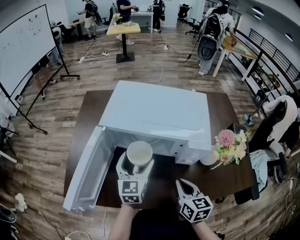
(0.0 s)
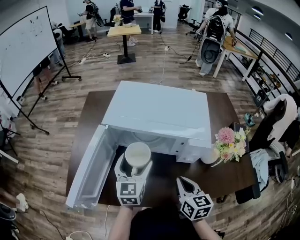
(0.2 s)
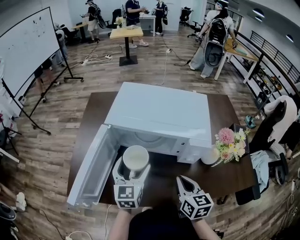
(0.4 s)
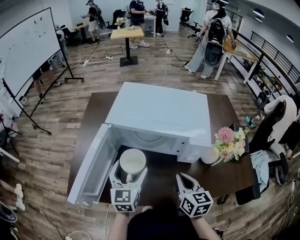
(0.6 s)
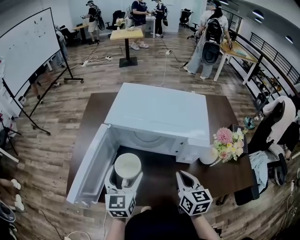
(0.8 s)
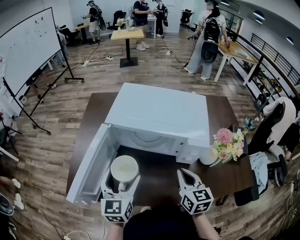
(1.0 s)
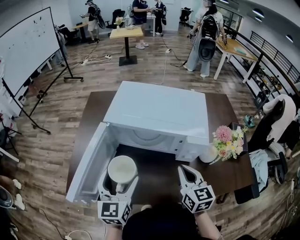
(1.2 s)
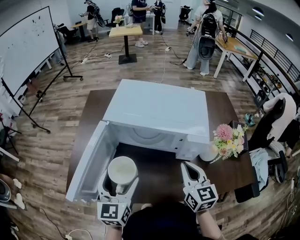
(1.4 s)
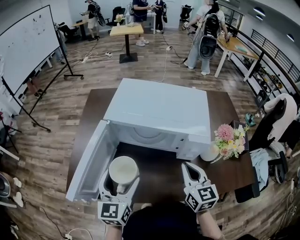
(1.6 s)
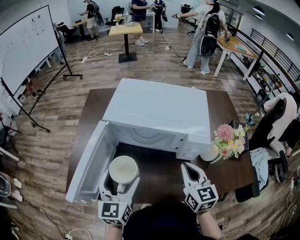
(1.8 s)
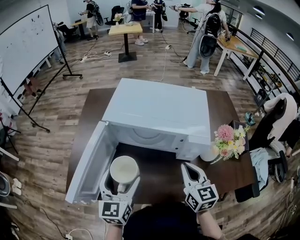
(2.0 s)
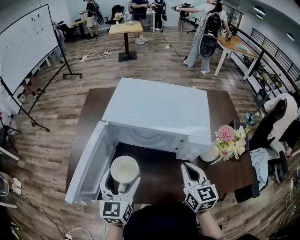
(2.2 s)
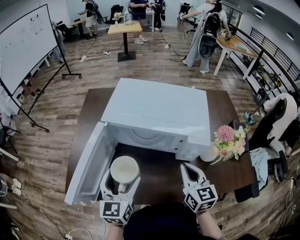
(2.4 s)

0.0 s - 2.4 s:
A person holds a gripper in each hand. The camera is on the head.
0.0 s - 1.2 s: The right gripper is displaced upward by about 5 cm; the left gripper heads backward, to the left and upward, covering roughly 15 cm.
1.2 s - 2.4 s: The grippers make only small movements.

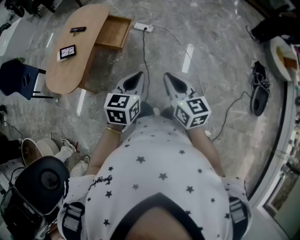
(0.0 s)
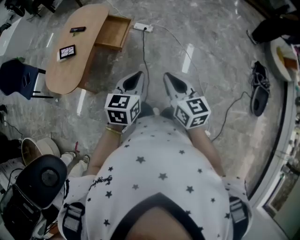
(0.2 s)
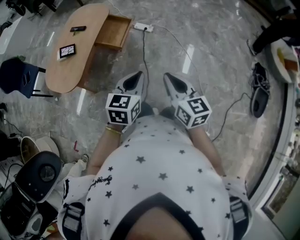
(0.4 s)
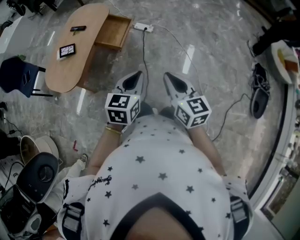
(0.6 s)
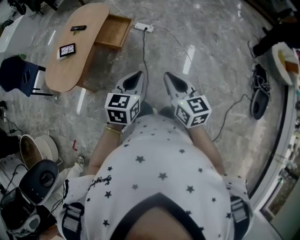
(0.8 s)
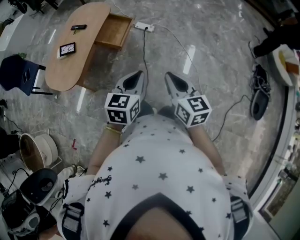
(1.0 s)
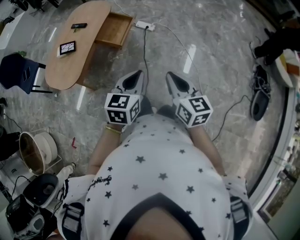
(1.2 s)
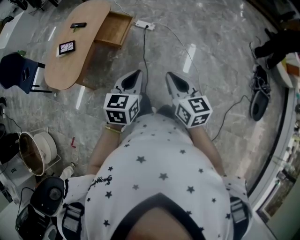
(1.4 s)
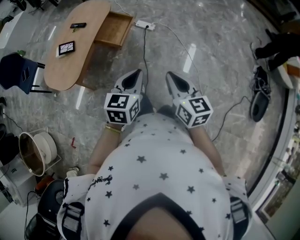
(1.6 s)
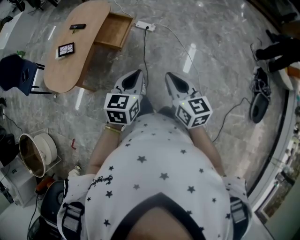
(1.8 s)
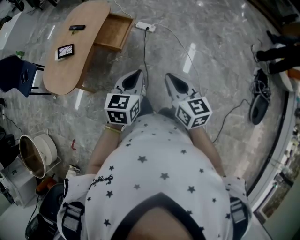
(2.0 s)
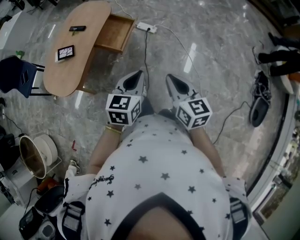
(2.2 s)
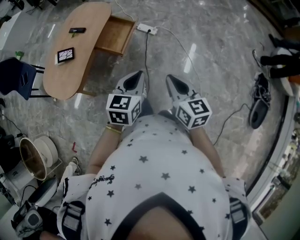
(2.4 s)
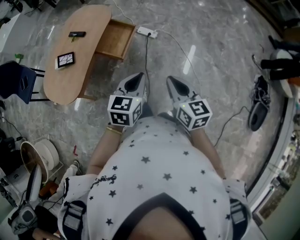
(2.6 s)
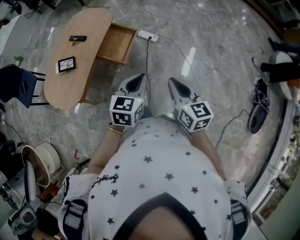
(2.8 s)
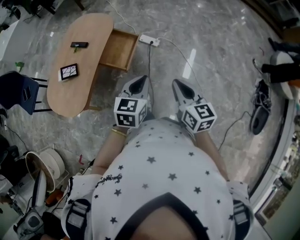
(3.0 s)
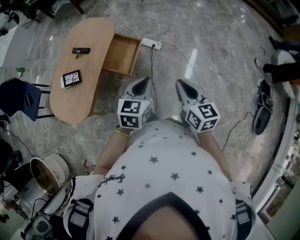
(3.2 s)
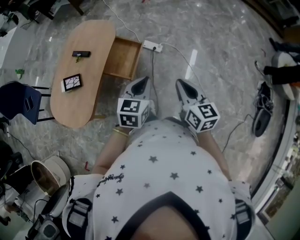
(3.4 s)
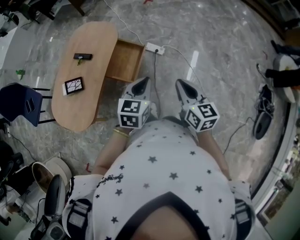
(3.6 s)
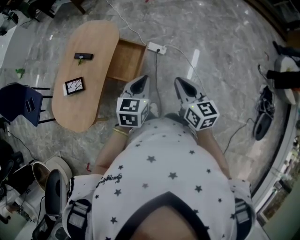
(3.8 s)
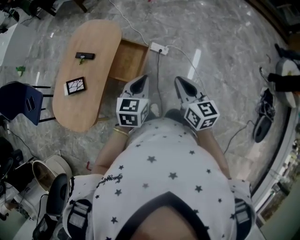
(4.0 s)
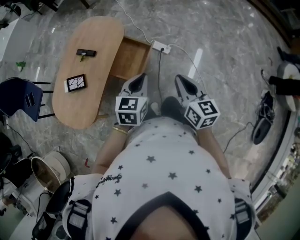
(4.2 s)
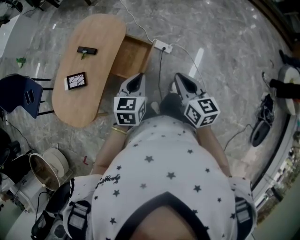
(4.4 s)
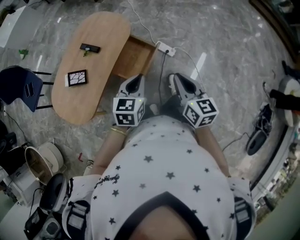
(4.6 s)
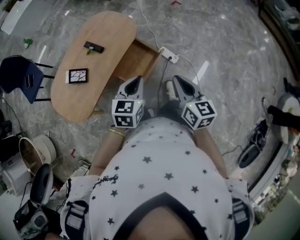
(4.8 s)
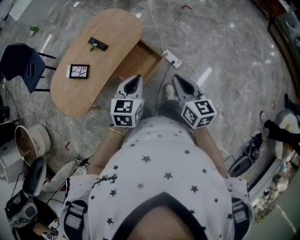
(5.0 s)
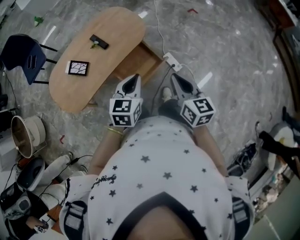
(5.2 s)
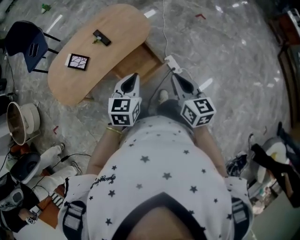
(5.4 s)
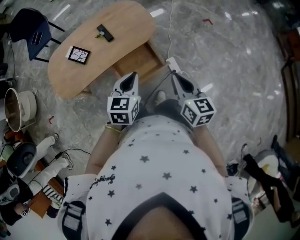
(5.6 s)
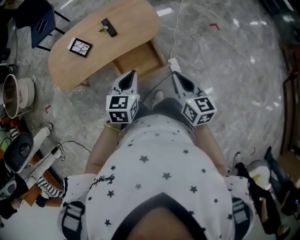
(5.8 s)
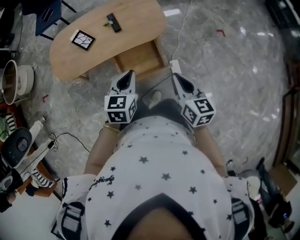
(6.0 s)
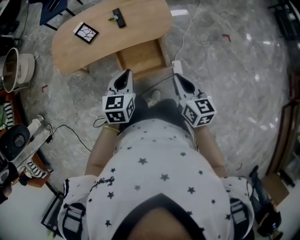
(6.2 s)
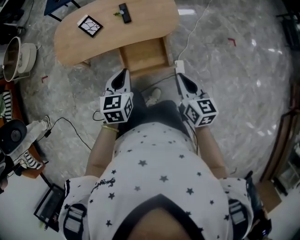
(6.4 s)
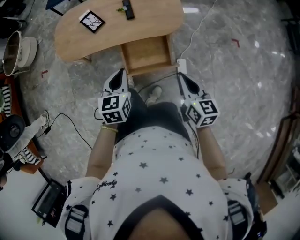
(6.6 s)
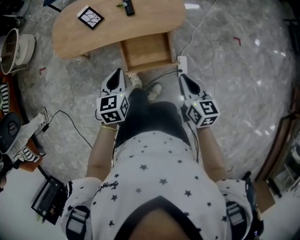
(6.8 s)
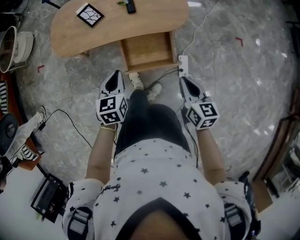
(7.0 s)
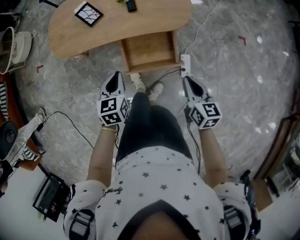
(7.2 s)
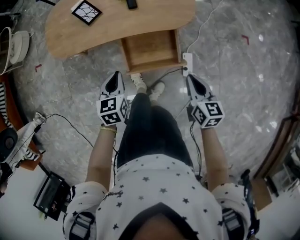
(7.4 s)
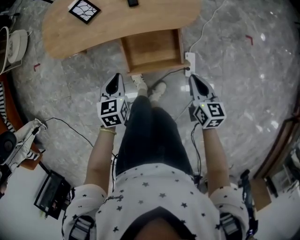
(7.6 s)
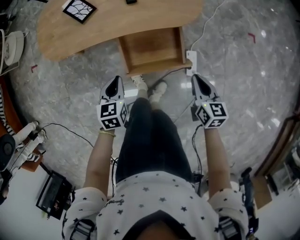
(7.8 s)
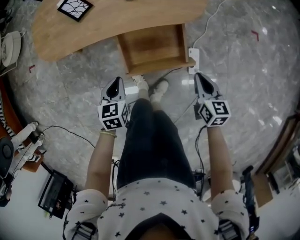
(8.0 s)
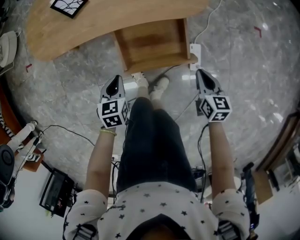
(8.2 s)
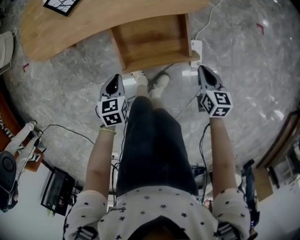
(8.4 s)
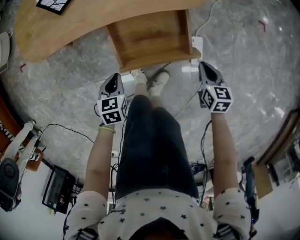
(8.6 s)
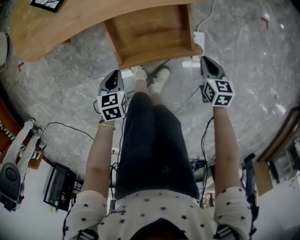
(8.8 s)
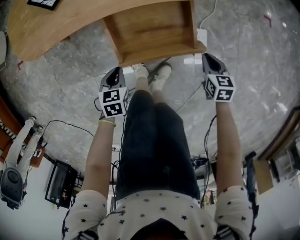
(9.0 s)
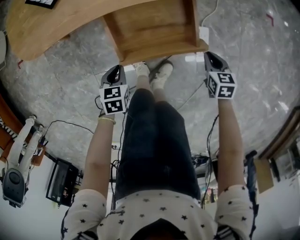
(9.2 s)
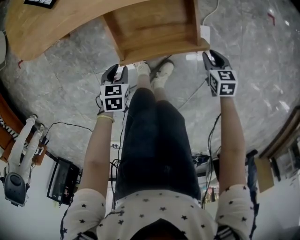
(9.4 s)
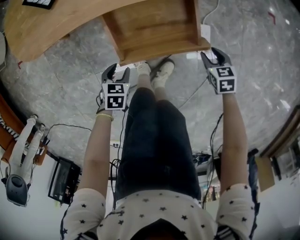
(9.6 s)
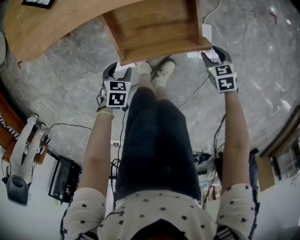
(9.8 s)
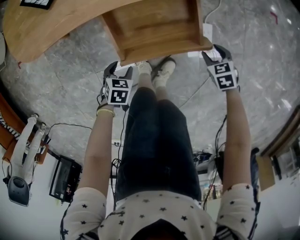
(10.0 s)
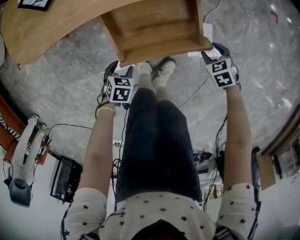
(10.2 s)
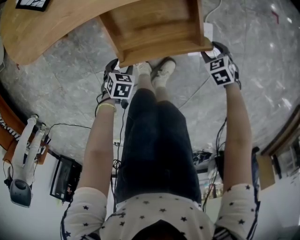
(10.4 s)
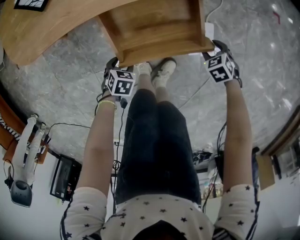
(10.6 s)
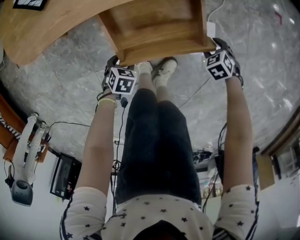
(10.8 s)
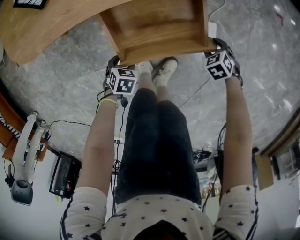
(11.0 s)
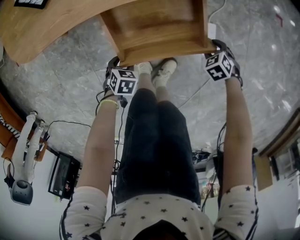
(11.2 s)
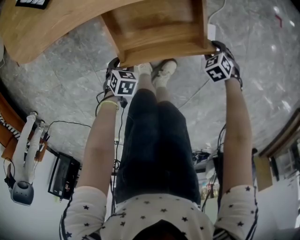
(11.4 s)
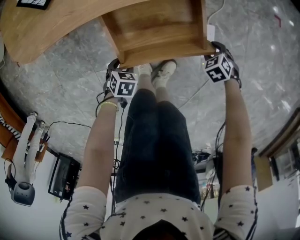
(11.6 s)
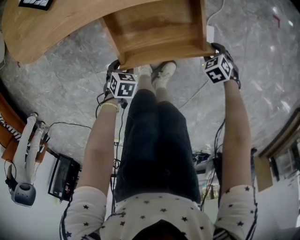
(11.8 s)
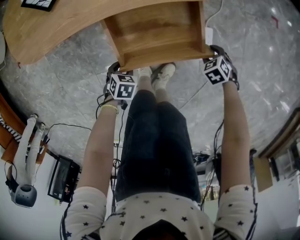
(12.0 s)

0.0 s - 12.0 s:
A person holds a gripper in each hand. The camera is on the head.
0.0 s - 1.6 s: The grippers move only a little.
1.6 s - 3.0 s: The grippers both shift forward by about 20 cm.
3.0 s - 4.4 s: The left gripper moves forward and to the left, about 20 cm. Meanwhile the right gripper heads forward, covering some 20 cm.
4.4 s - 6.0 s: The right gripper changes place by approximately 25 cm, and swivels about 50 degrees. The left gripper changes place by roughly 15 cm, and turns by some 50 degrees.
6.0 s - 7.6 s: The right gripper heads downward, covering about 20 cm, while the left gripper travels downward and to the left by approximately 25 cm, and swivels approximately 20 degrees.
7.6 s - 9.0 s: Both grippers travel together downward, some 25 cm. The right gripper turns by roughly 20 degrees.
9.0 s - 10.4 s: Both grippers travel together downward, about 10 cm. The left gripper rotates about 30 degrees, and opens. The right gripper changes its angle by about 40 degrees, and opens up.
10.4 s - 12.0 s: The grippers make only small movements.

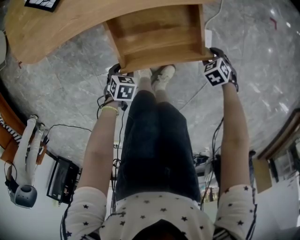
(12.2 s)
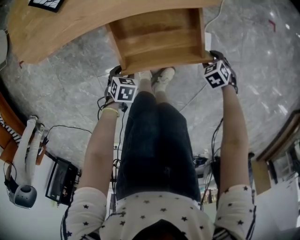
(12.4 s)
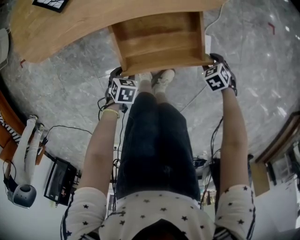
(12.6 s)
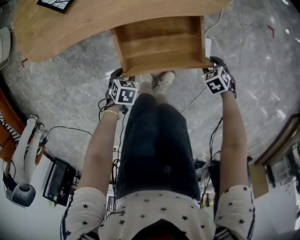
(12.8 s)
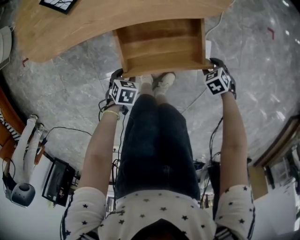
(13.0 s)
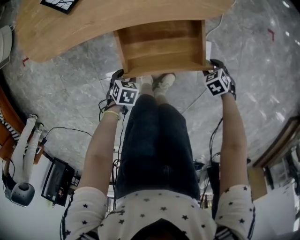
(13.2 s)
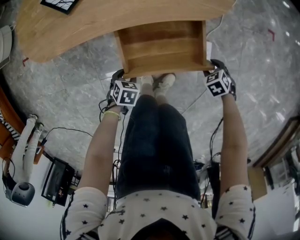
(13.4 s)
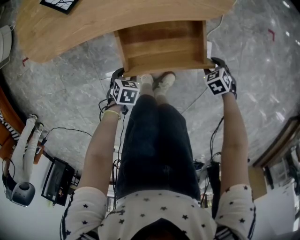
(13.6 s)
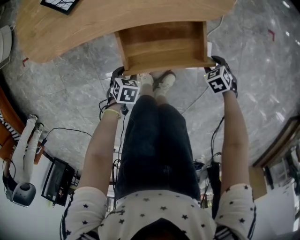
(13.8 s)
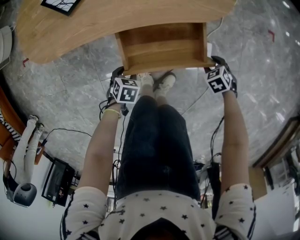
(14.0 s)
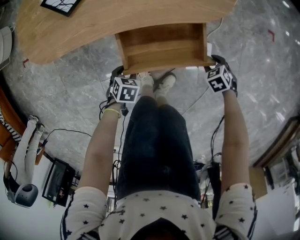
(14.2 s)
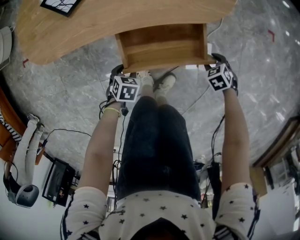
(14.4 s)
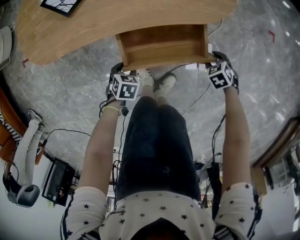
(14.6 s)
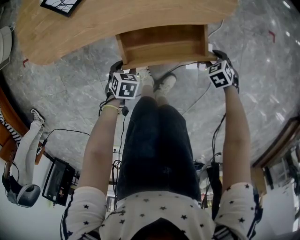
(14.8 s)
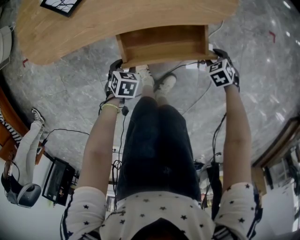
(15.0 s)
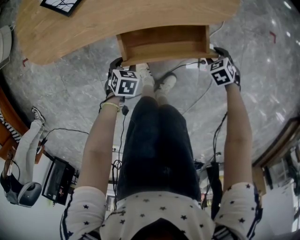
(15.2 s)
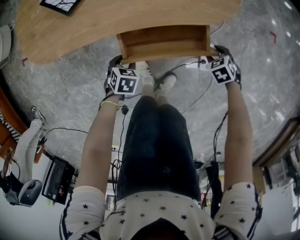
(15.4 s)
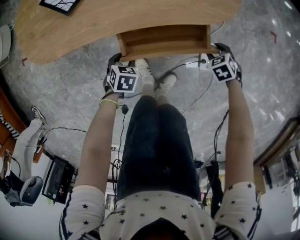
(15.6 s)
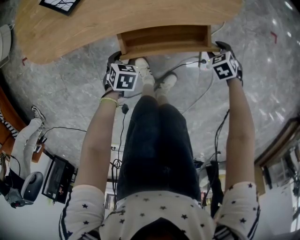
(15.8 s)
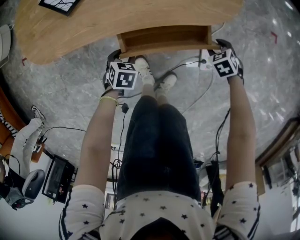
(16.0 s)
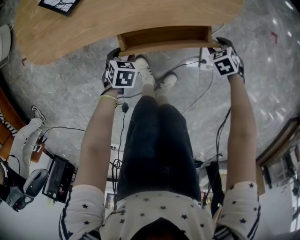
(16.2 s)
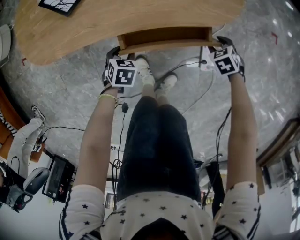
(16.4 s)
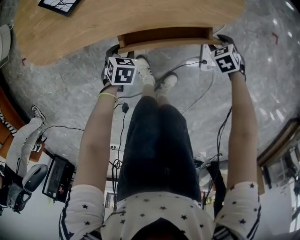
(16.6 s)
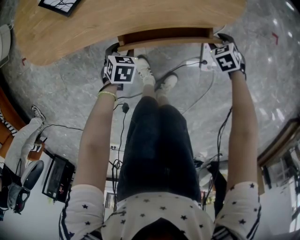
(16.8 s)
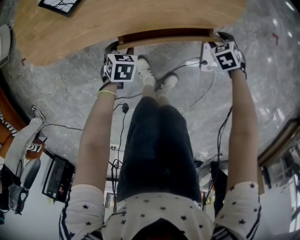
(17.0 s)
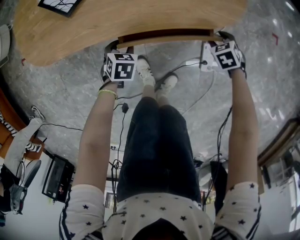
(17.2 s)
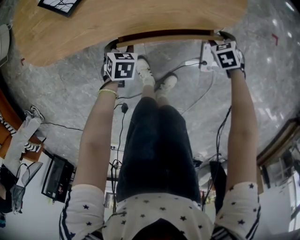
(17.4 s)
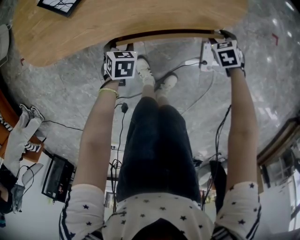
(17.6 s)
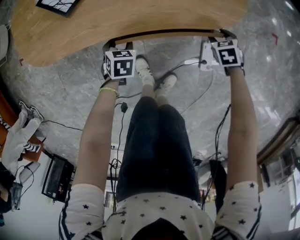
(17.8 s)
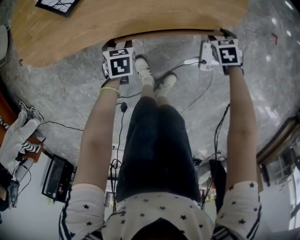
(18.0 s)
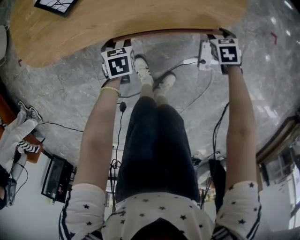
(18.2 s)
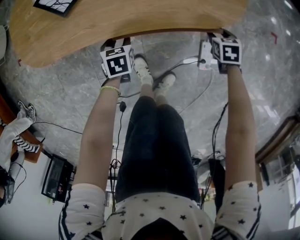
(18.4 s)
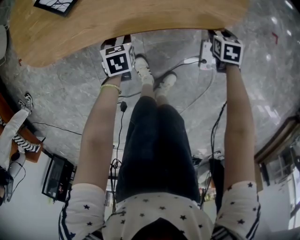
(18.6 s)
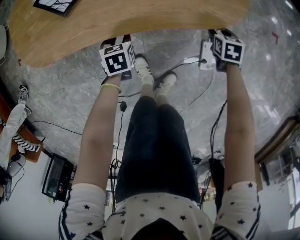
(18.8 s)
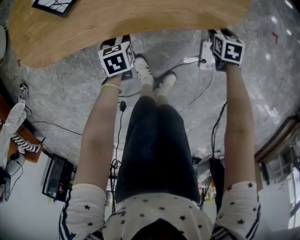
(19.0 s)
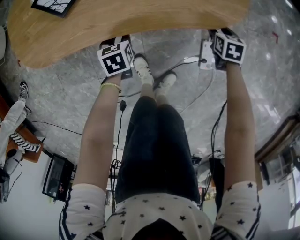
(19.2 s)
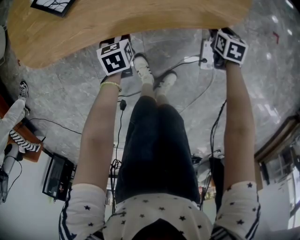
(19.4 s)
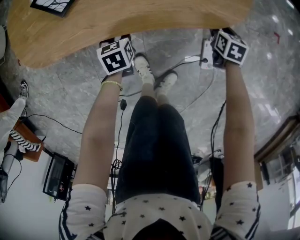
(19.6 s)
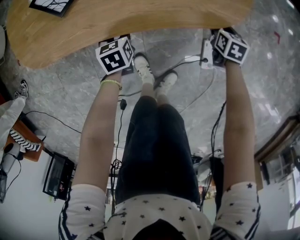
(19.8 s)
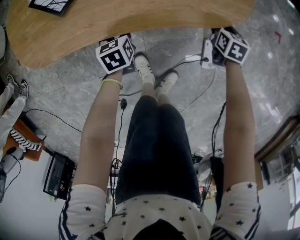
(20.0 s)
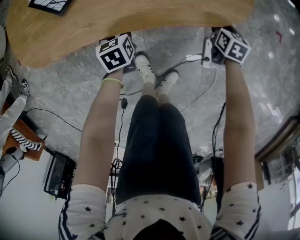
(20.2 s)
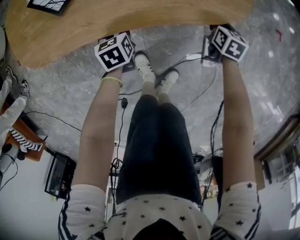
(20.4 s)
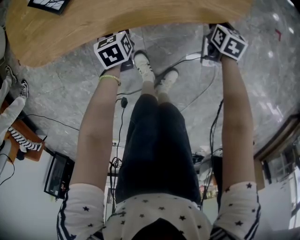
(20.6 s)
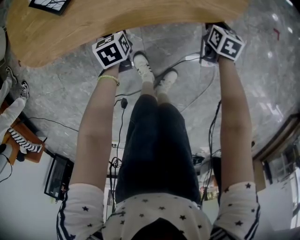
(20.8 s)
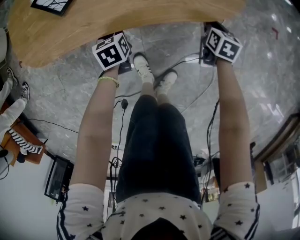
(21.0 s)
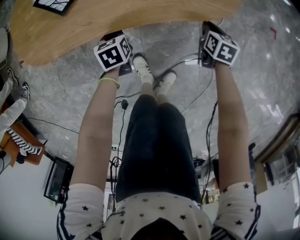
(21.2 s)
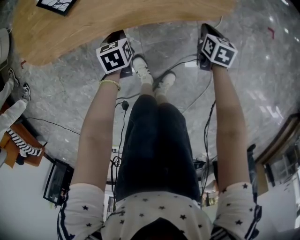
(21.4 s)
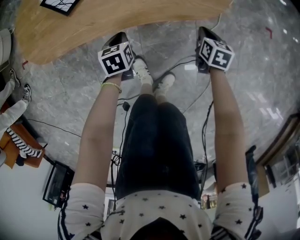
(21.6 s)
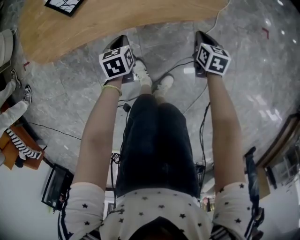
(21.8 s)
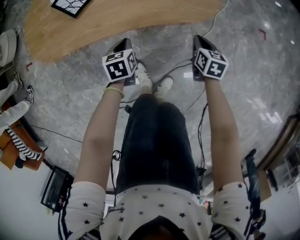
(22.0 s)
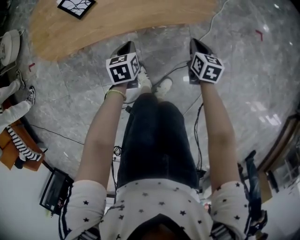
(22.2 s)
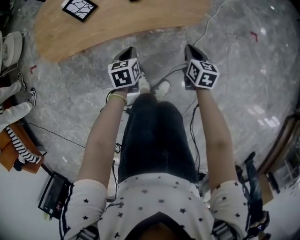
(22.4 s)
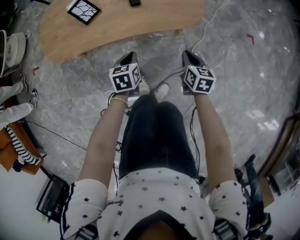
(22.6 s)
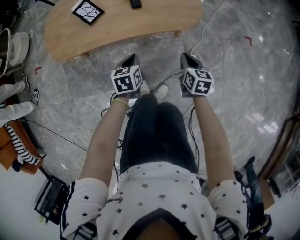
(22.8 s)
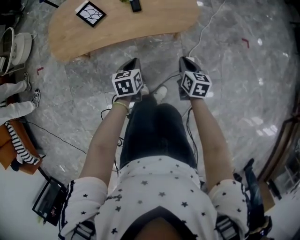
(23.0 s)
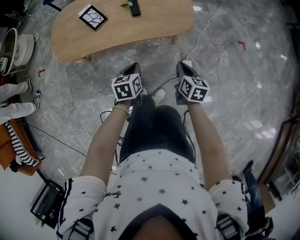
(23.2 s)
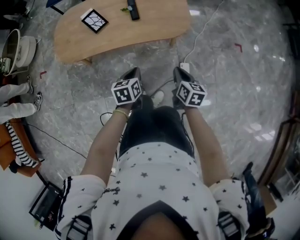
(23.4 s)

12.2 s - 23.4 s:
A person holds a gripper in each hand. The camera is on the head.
12.2 s - 13.8 s: The grippers move only a little.
13.8 s - 15.4 s: The right gripper moves approximately 5 cm; the left gripper changes place by some 5 cm.
15.4 s - 17.0 s: The left gripper changes place by approximately 5 cm, while the right gripper ends up approximately 10 cm from where it was.
17.0 s - 18.6 s: The left gripper rotates some 20 degrees. The right gripper turns by roughly 30 degrees.
18.6 s - 20.2 s: There are only small adjustments of the grippers.
20.2 s - 21.8 s: The right gripper goes approximately 10 cm backward and upward, and closes its fingers. Meanwhile the left gripper travels upward by some 5 cm, and closes its fingers.
21.8 s - 23.4 s: Both grippers travel together upward and backward, roughly 25 cm.
